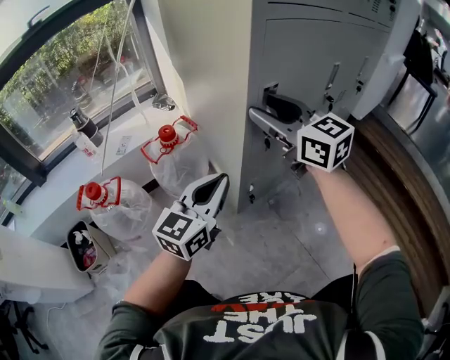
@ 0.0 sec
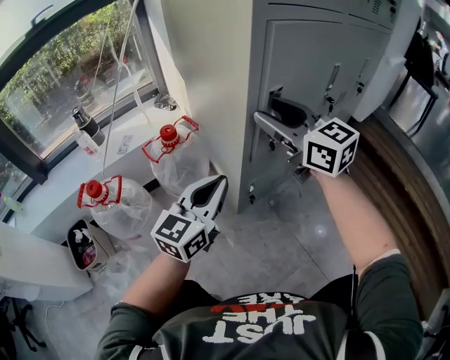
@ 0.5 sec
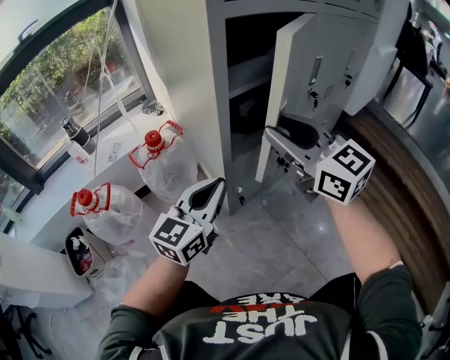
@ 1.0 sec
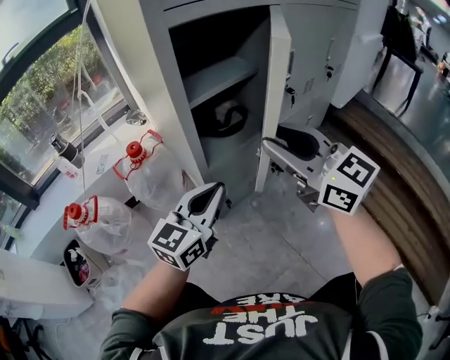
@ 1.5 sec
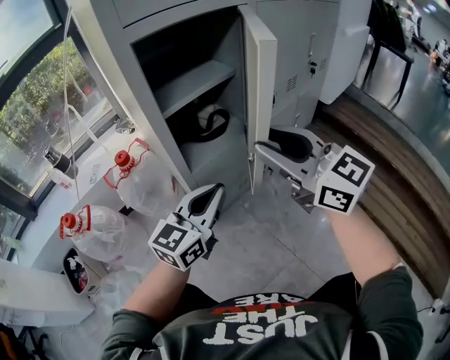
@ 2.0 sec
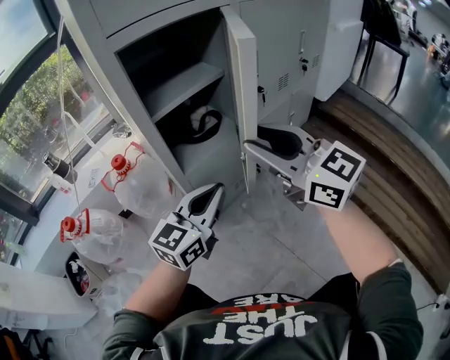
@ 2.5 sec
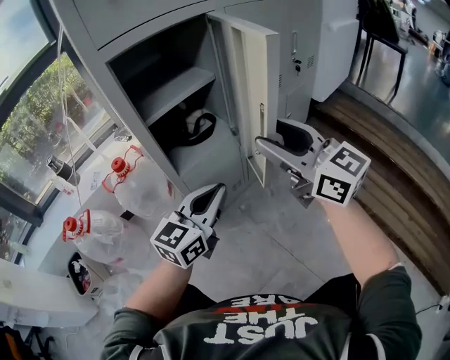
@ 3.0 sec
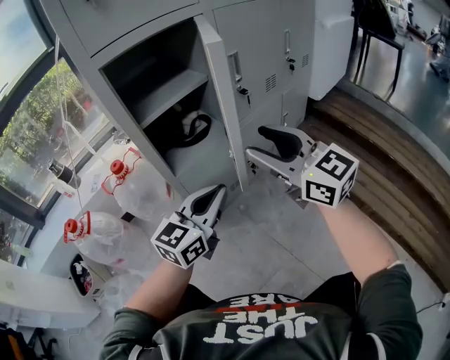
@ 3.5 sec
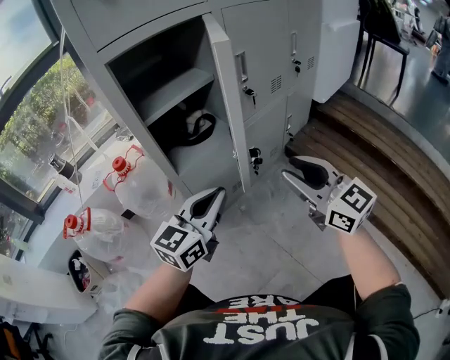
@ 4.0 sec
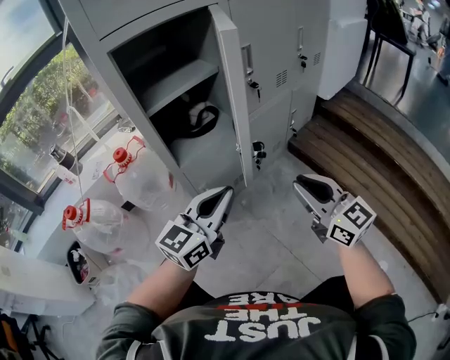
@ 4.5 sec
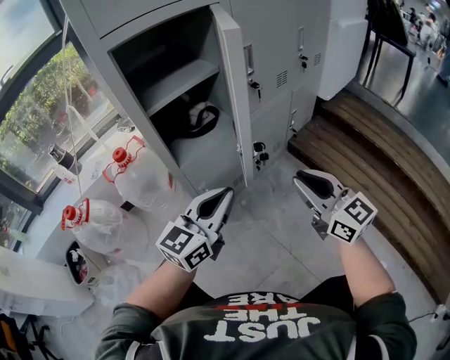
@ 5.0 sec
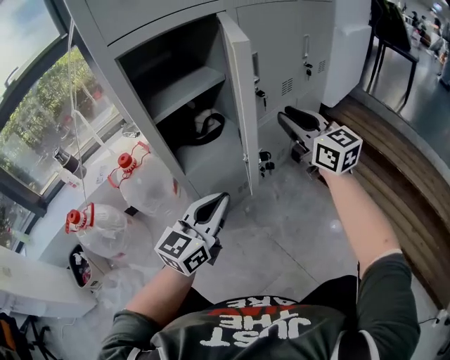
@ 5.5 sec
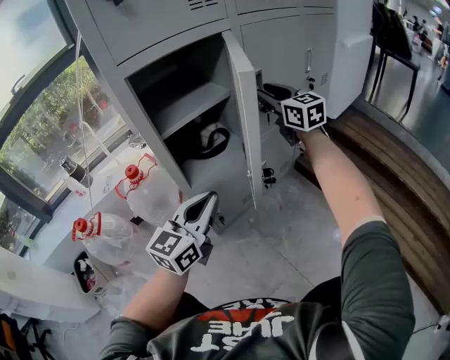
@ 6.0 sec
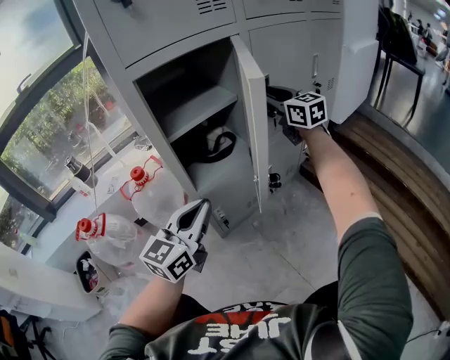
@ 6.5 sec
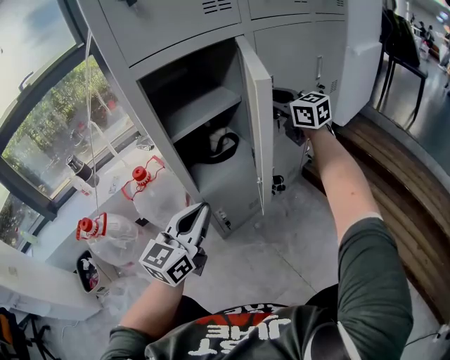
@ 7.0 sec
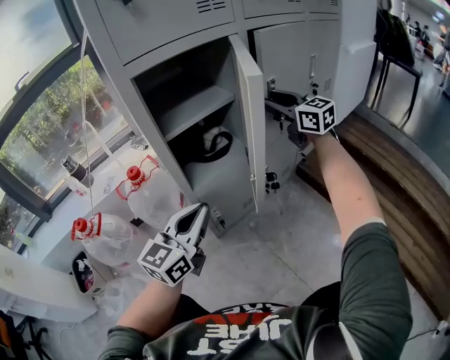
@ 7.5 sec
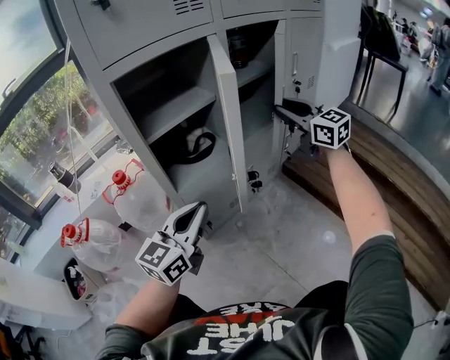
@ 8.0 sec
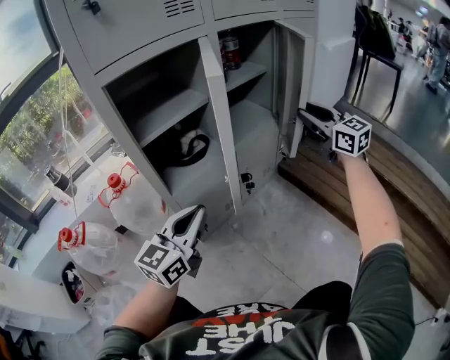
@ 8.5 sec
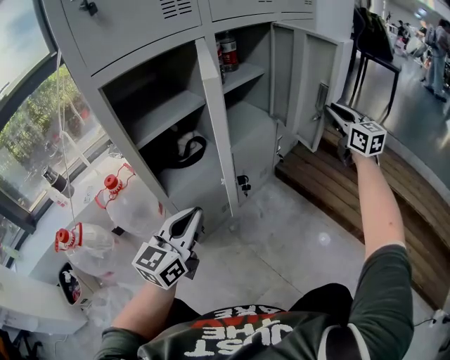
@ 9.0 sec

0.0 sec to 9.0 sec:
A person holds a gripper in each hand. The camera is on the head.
0.0 sec to 2.0 sec: The left gripper shifts some 15 cm to the right. The right gripper moves to the right and backward, about 20 cm.
2.0 sec to 4.5 sec: The right gripper travels to the right, downward and backward by some 20 cm, and opens, then closes once more. The left gripper is displaced to the right by about 5 cm.
4.5 sec to 7.0 sec: The right gripper moves forward and upward, approximately 35 cm, and opens. Meanwhile the left gripper moves to the left, about 10 cm.
7.0 sec to 9.0 sec: The right gripper heads to the right, covering some 30 cm, and rotates roughly 30 degrees. Meanwhile the left gripper is displaced to the right by about 5 cm.

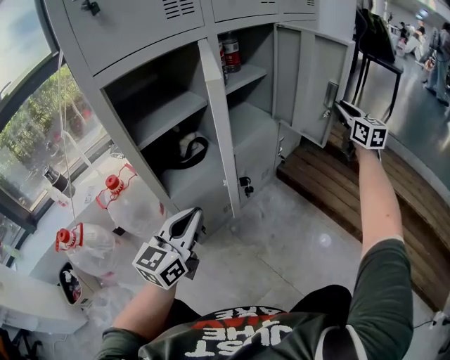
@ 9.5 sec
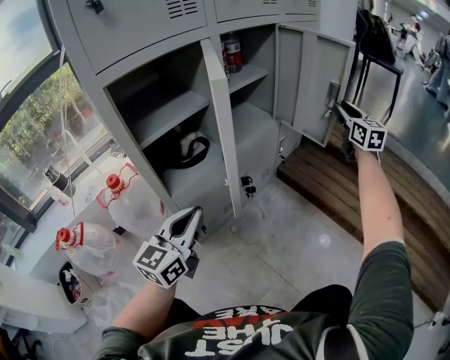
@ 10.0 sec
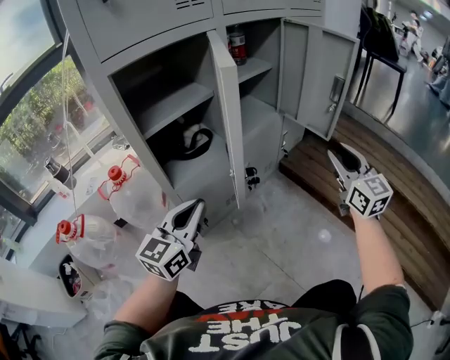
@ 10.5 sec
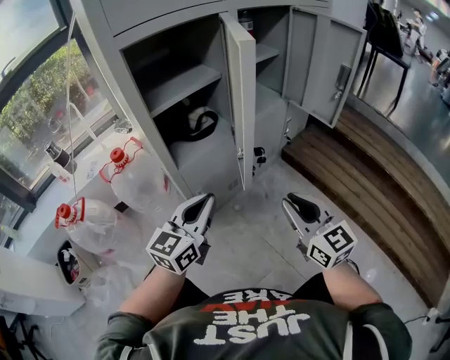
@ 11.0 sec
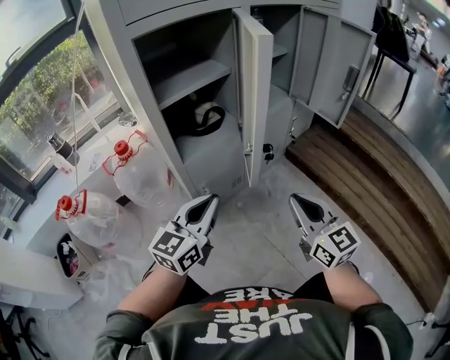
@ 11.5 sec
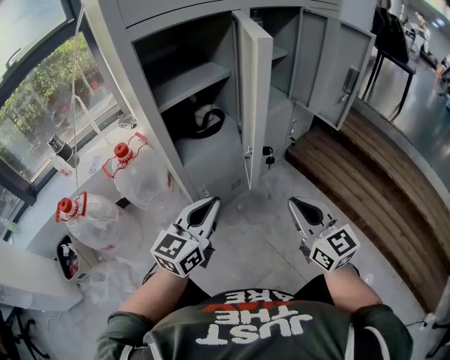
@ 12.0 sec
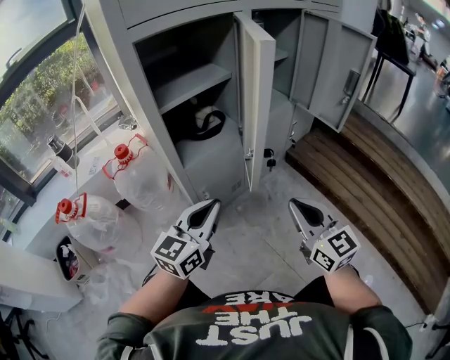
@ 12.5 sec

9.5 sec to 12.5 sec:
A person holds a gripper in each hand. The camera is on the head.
9.5 sec to 11.0 sec: The right gripper heads backward and to the left, covering some 40 cm, and turns by some 20 degrees.
11.0 sec to 12.5 sec: The grippers stay close to where they were, moving slightly.

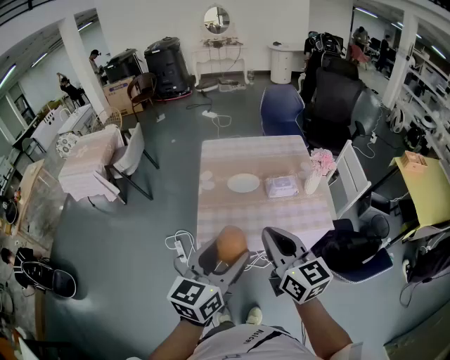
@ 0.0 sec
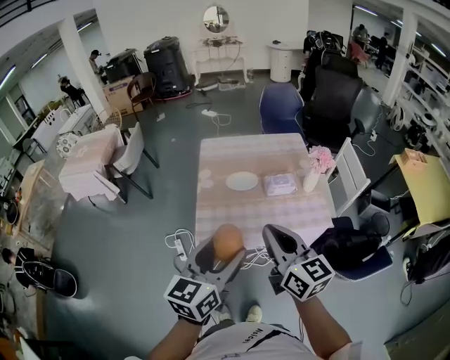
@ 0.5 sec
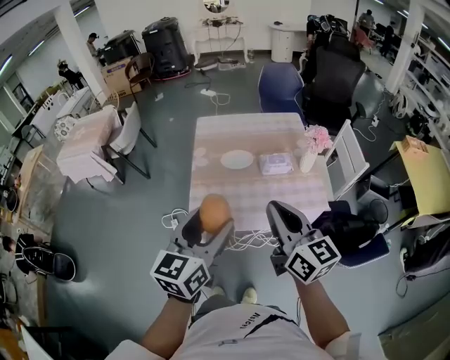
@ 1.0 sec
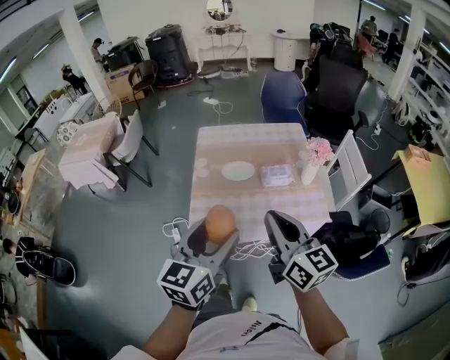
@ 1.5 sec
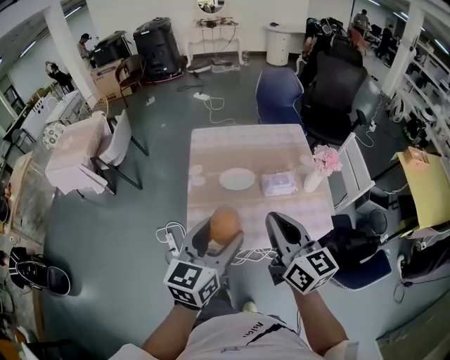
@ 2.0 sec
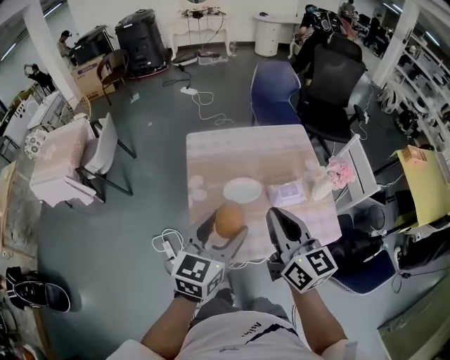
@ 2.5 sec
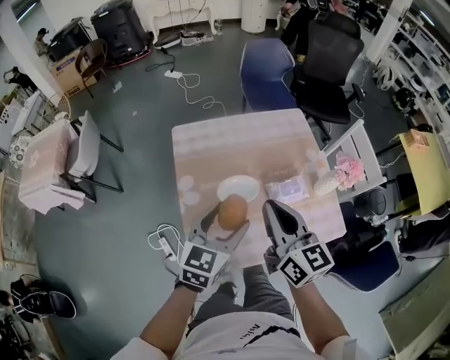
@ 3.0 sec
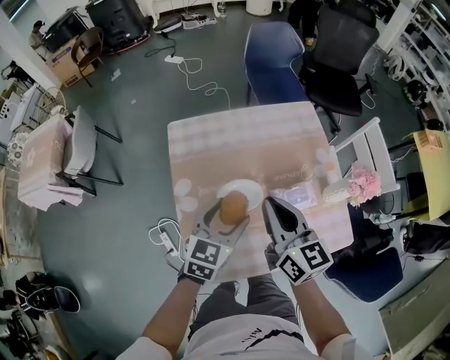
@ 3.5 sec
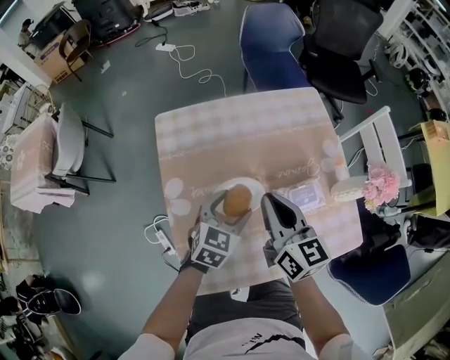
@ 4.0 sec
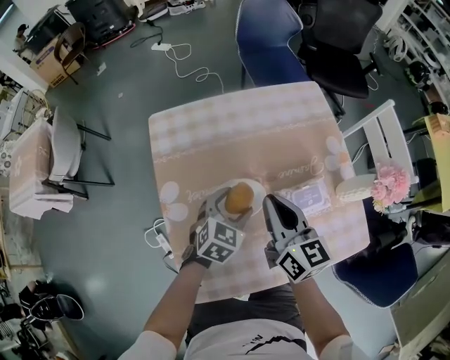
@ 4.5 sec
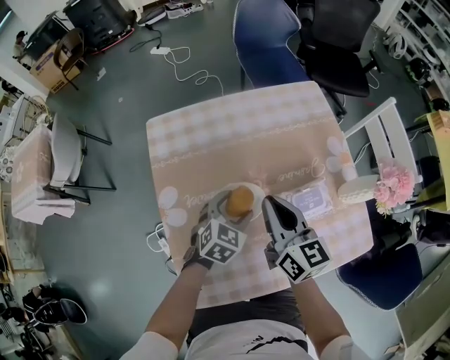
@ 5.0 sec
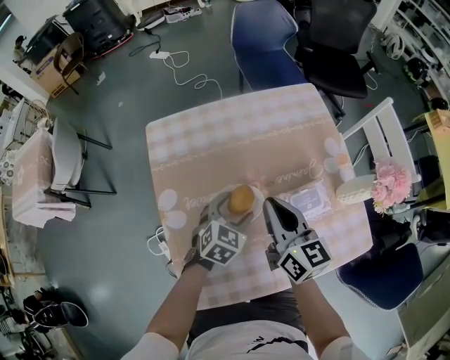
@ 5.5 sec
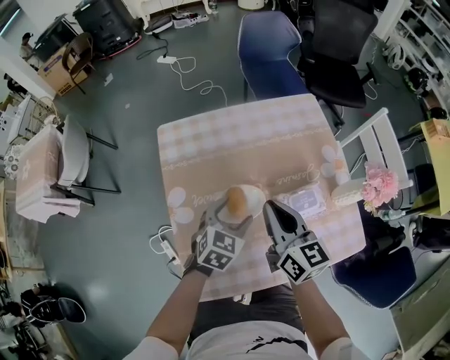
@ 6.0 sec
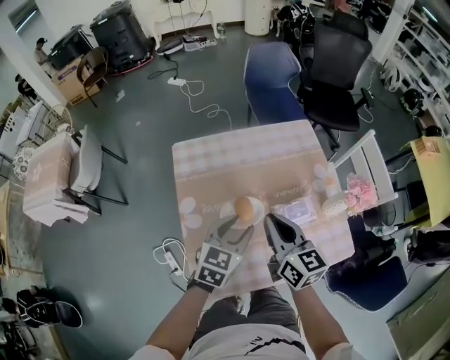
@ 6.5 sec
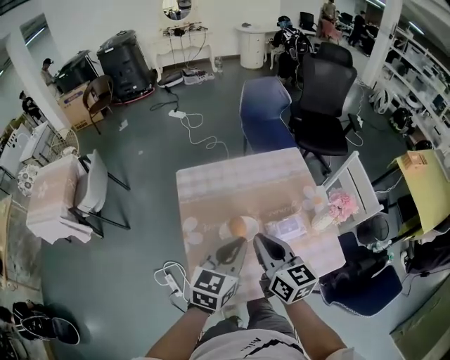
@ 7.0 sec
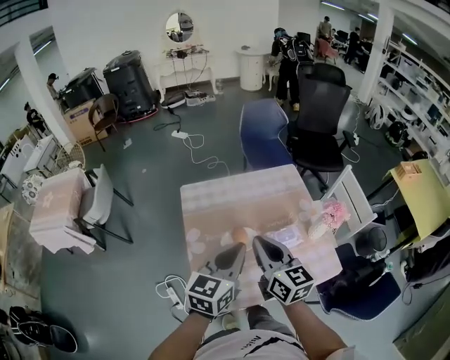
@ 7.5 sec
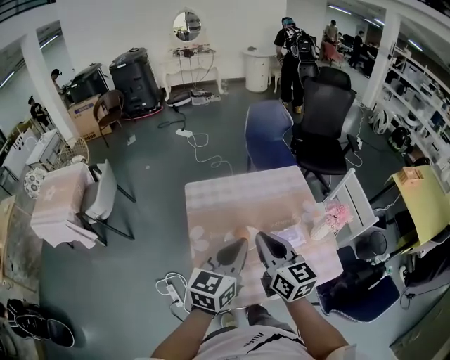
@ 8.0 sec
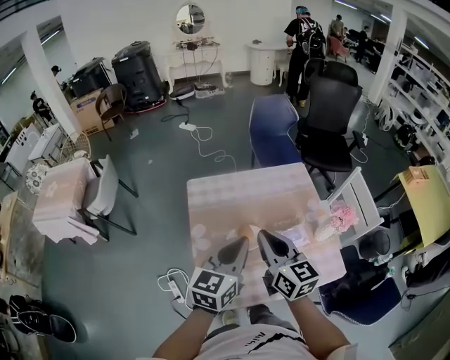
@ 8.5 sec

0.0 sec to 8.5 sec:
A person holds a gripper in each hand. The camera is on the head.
0.0 sec to 2.0 sec: Both grippers travel together forward, some 10 cm.
2.0 sec to 4.0 sec: The two grippers go some 40 cm forward and downward. The left gripper rotates roughly 30 degrees.
4.0 sec to 6.5 sec: The left gripper heads upward, covering some 10 cm, and closes, while the right gripper changes place by some 5 cm.
6.5 sec to 8.5 sec: Both grippers travel together upward, roughly 15 cm. The left gripper changes its angle by some 20 degrees, and closes.

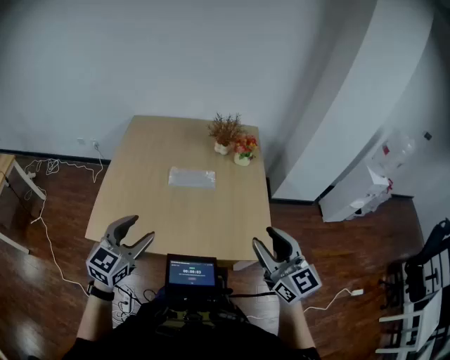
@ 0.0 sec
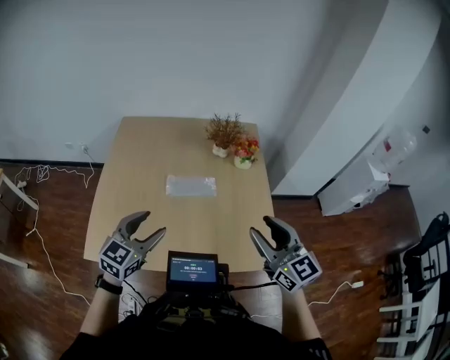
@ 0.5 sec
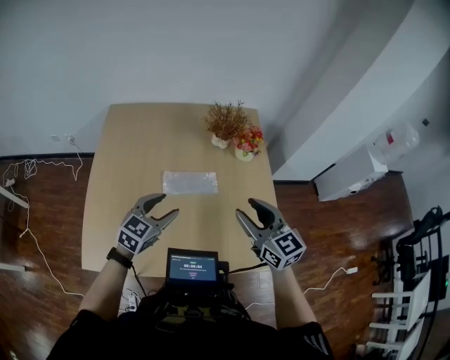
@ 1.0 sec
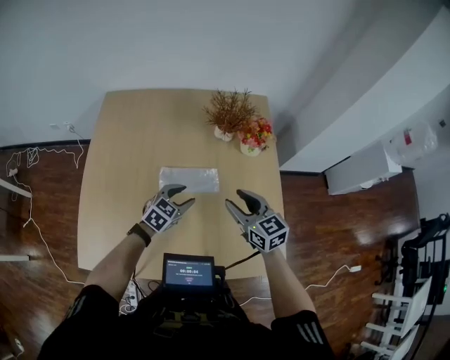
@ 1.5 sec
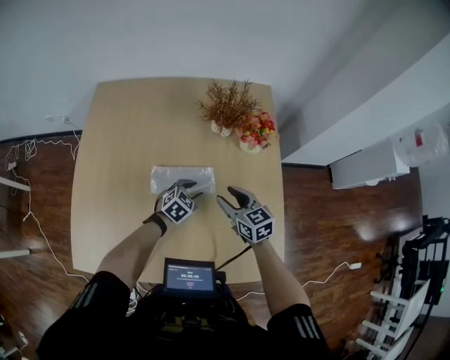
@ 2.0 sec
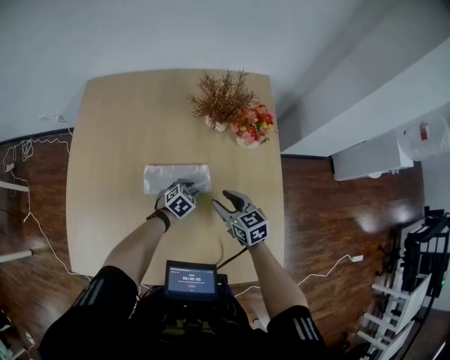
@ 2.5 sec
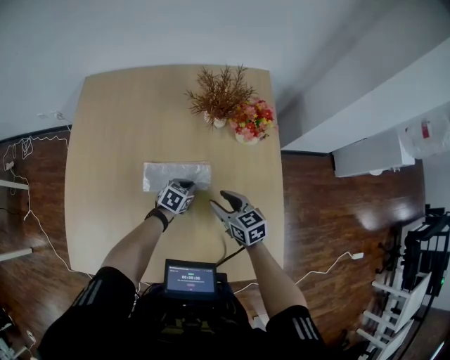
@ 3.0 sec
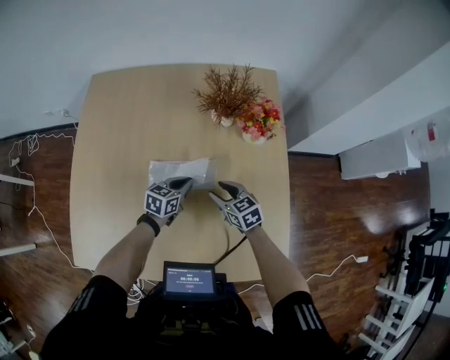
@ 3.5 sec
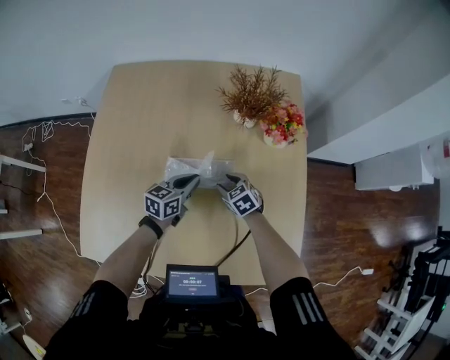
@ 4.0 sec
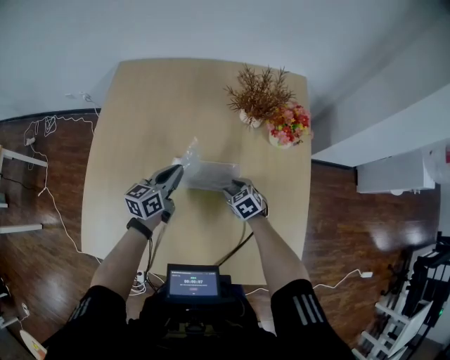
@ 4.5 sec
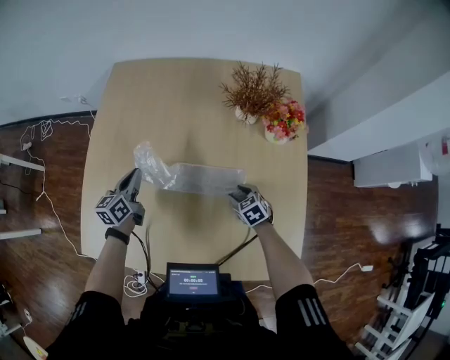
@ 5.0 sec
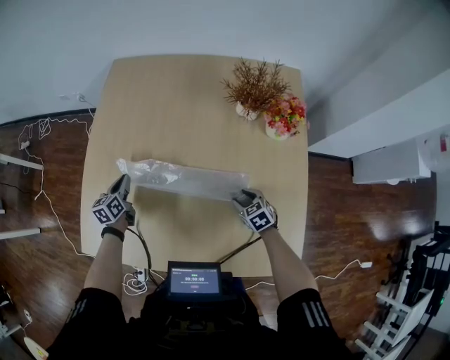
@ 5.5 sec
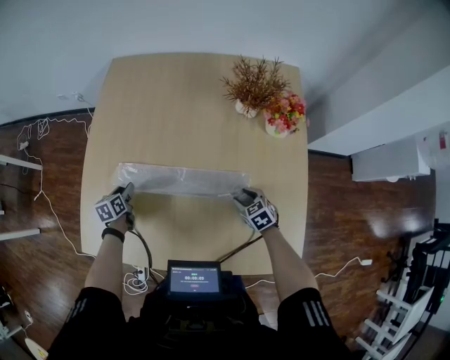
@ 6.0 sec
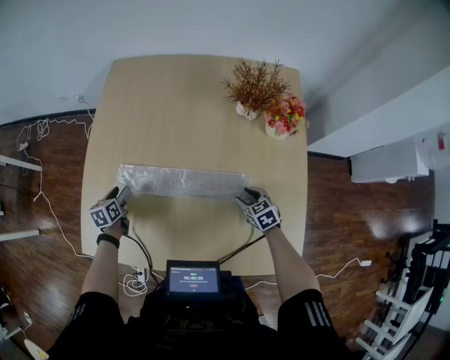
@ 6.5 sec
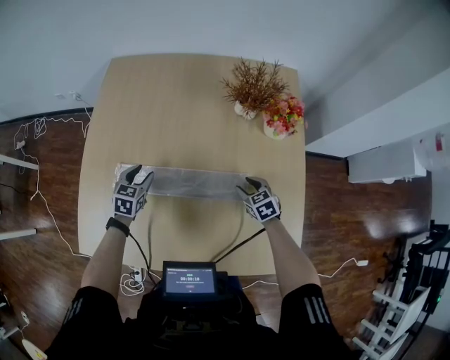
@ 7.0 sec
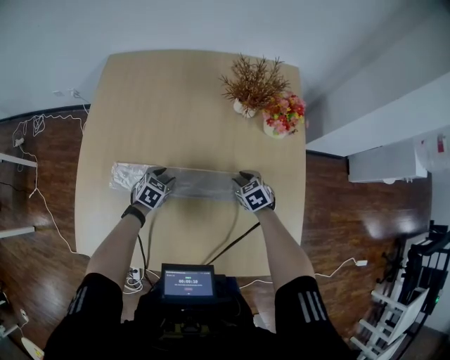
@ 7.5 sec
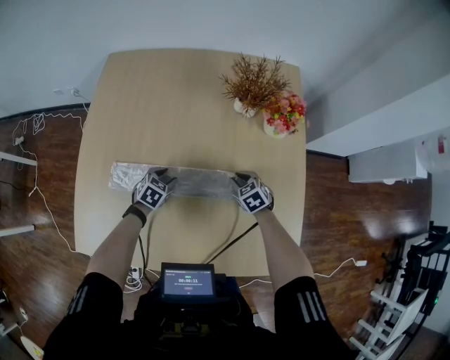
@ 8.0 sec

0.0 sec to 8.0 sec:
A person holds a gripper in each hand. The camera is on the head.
0.0 sec to 2.0 sec: Both grippers move forward and downward, roughly 50 cm. The left gripper tips its fingers downward by some 30 degrees; the right gripper turns by approximately 30 degrees.
2.0 sec to 4.0 sec: The left gripper moves to the left, some 5 cm, reaches roughly 5 cm downward, then returns, rotates roughly 40 degrees, and closes; the right gripper shifts some 15 cm downward and to the left, and turns by approximately 30 degrees.
4.0 sec to 6.0 sec: The right gripper shifts some 10 cm backward; the left gripper heads to the left, covering some 30 cm, changes its angle by some 40 degrees, and opens.
6.0 sec to 8.0 sec: The right gripper is displaced forward by roughly 5 cm. Meanwhile the left gripper moves to the right, about 20 cm, and rolls clockwise, seen from behind, by some 50 degrees.
